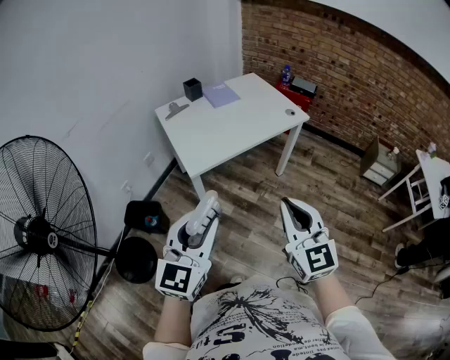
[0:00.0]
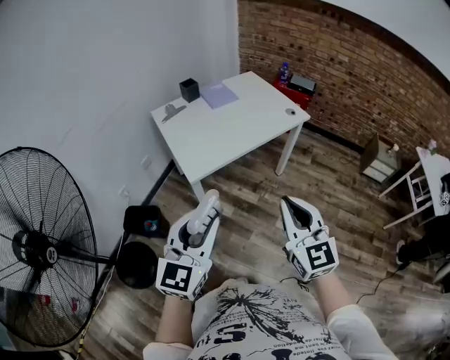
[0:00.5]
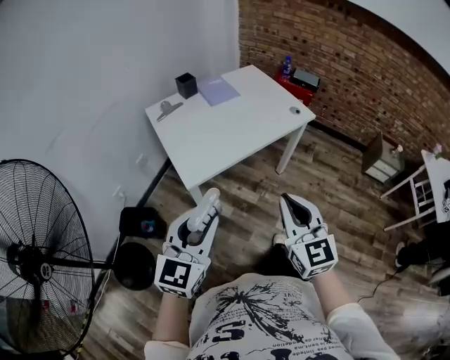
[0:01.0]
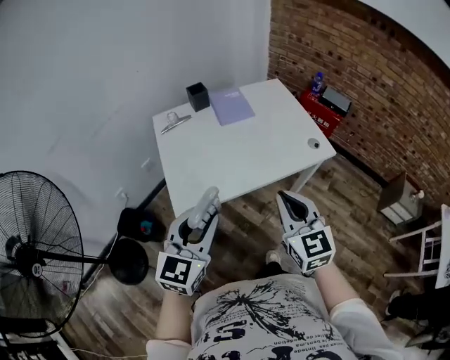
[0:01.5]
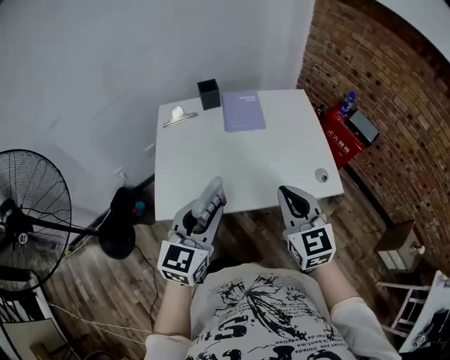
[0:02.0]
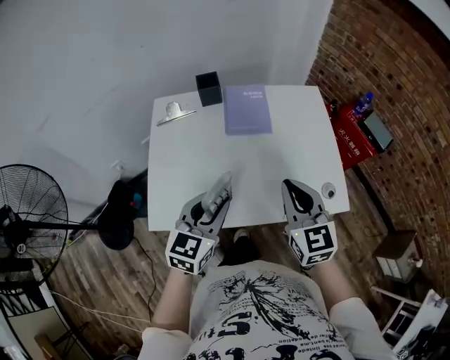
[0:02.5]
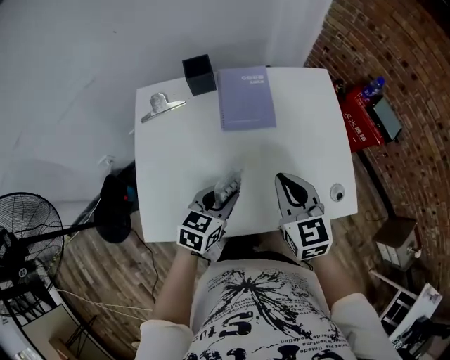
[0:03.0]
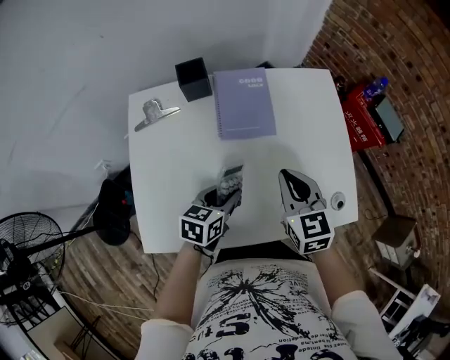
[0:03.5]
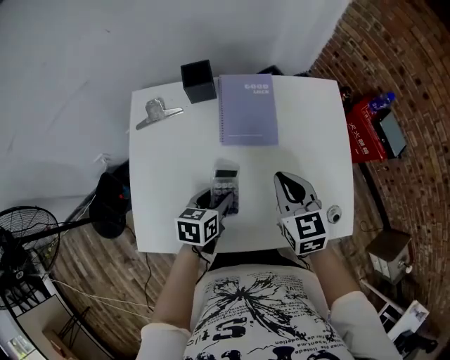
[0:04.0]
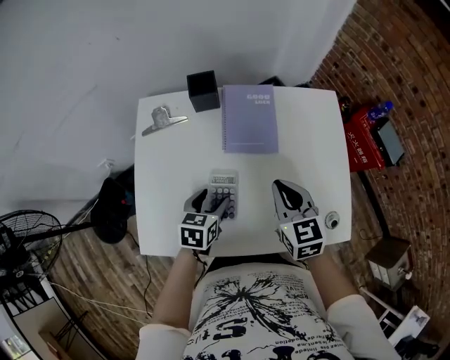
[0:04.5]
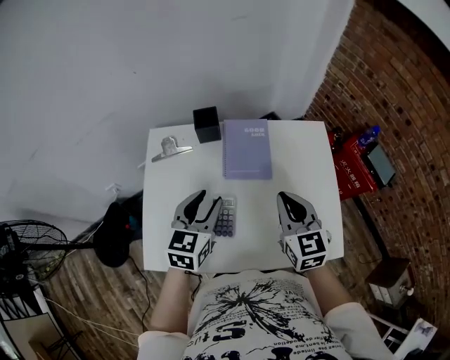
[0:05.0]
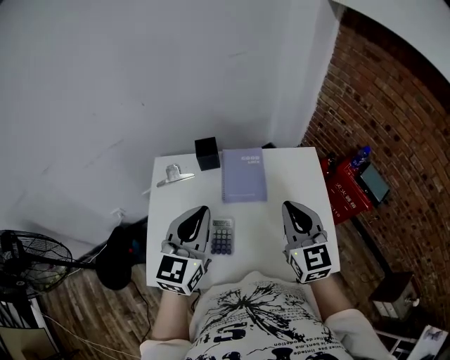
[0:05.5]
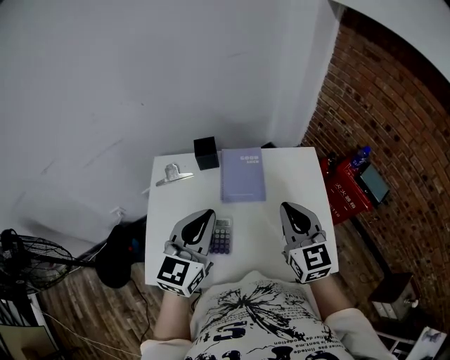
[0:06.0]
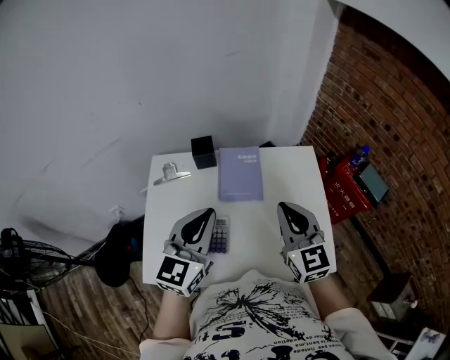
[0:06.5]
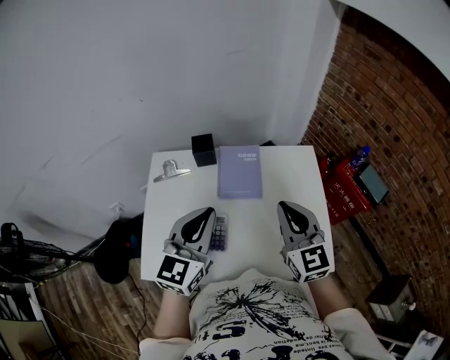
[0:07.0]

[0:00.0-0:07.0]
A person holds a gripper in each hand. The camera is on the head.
0:00.0 to 0:02.0: The pair of grippers is taken forward, some 50 cm. The left gripper changes its angle by about 20 degrees. The right gripper changes its angle by some 30 degrees.
0:02.0 to 0:03.5: The grippers both shift forward and downward by some 35 cm. The left gripper swivels some 40 degrees.
0:03.5 to 0:05.0: The left gripper is displaced upward by some 20 cm, and swivels about 30 degrees; the right gripper moves upward, about 10 cm.
0:05.0 to 0:07.0: The right gripper goes approximately 10 cm upward. Meanwhile the left gripper is displaced upward and backward by some 15 cm, and closes up.

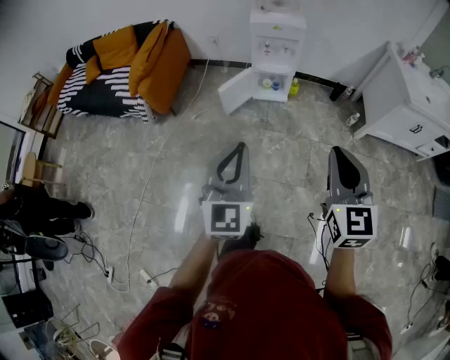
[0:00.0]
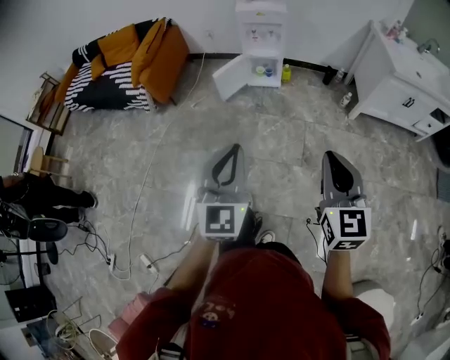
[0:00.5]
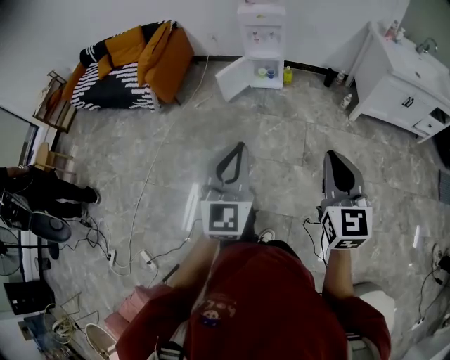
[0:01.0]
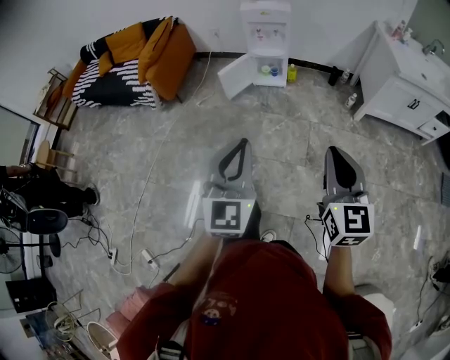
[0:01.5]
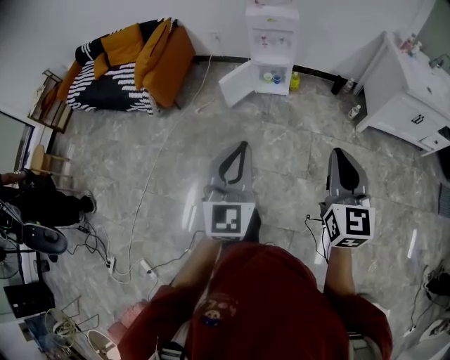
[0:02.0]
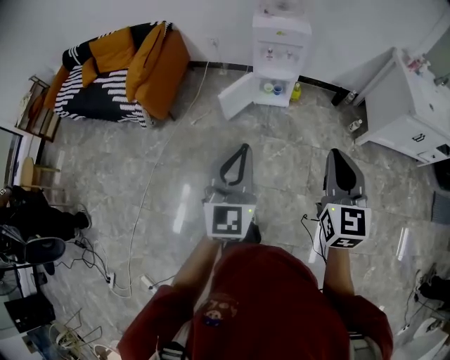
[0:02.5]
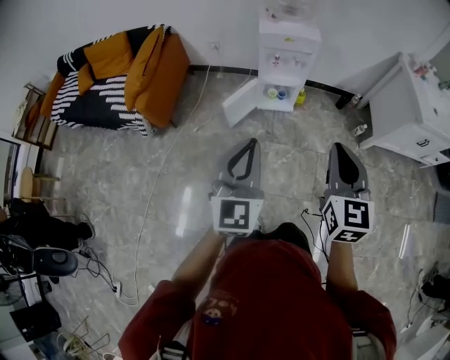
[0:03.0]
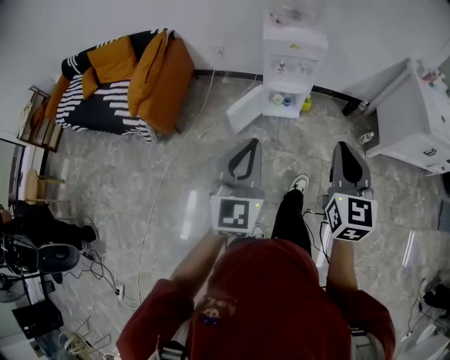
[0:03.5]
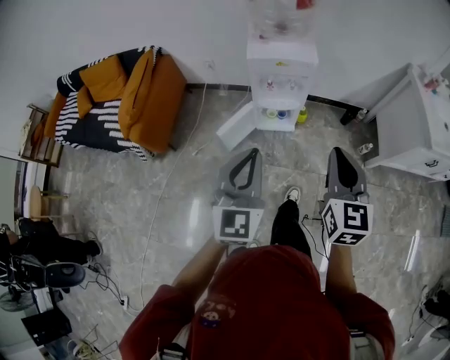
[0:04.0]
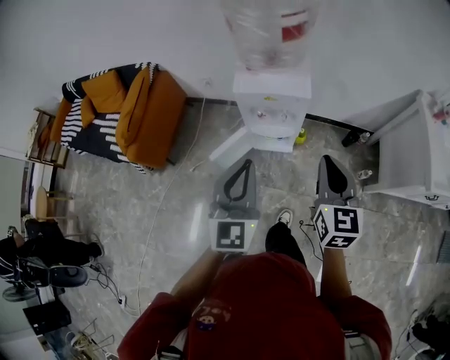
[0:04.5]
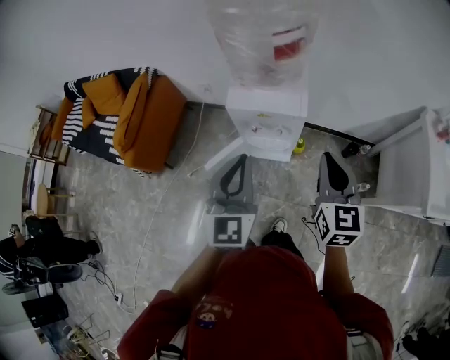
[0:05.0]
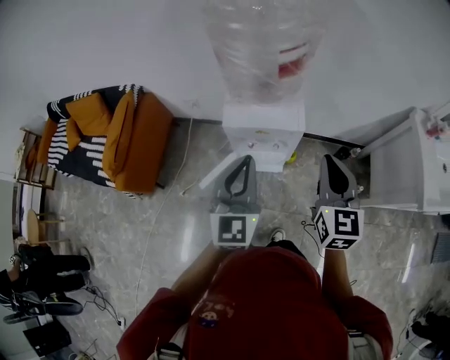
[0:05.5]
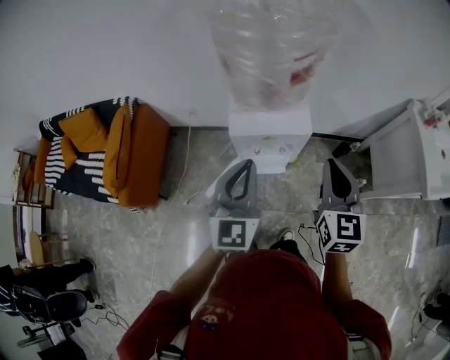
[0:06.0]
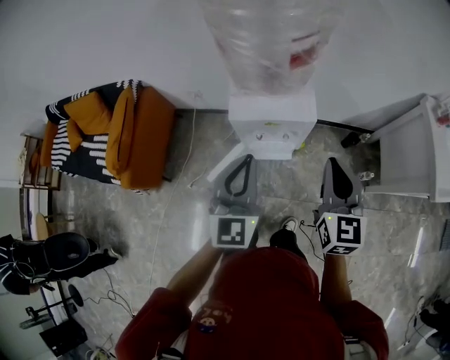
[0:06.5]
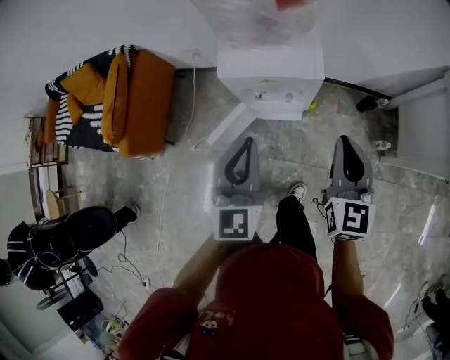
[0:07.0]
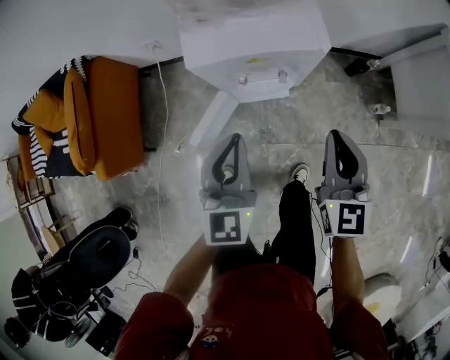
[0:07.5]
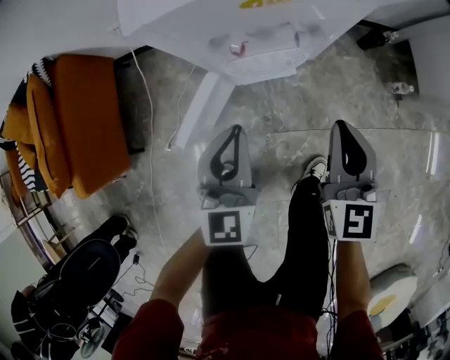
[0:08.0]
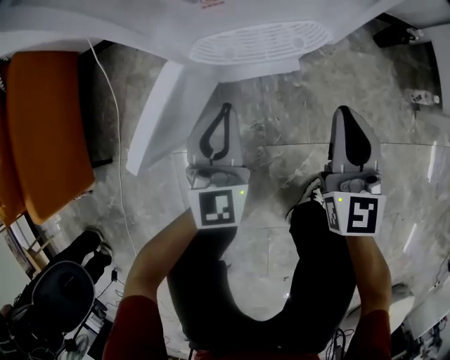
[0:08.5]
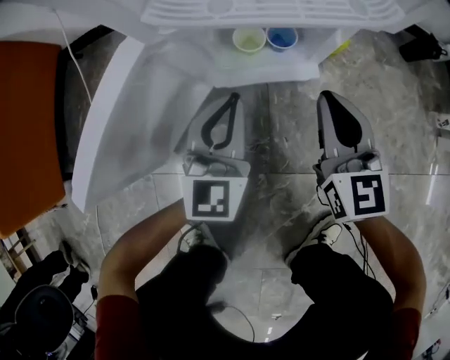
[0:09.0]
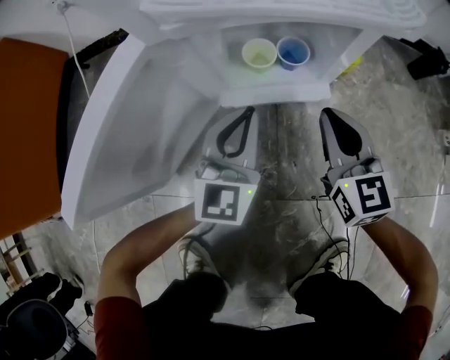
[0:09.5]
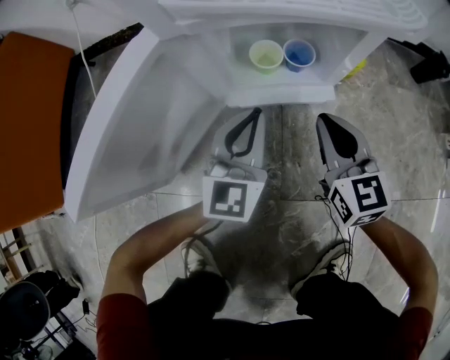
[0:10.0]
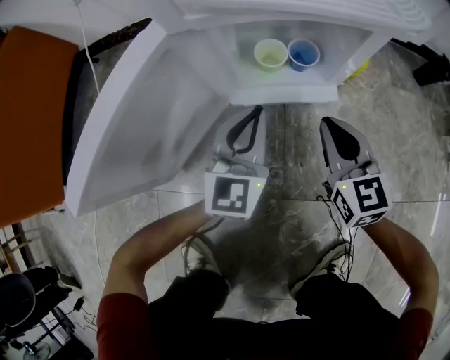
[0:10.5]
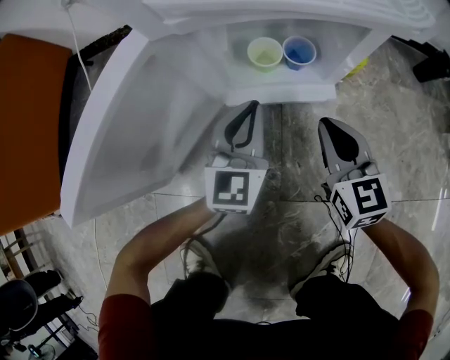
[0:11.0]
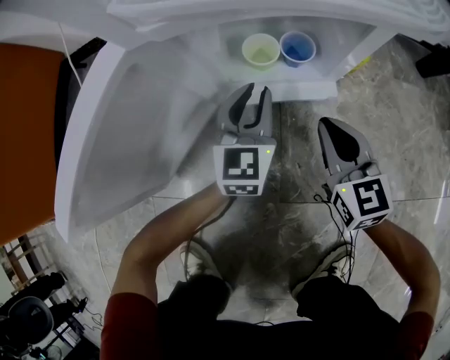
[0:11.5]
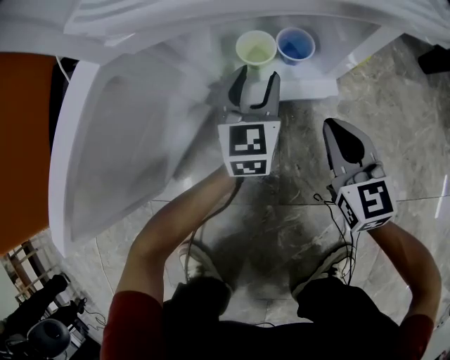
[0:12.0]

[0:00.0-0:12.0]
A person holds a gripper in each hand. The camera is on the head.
0:00.0 to 0:02.0: The left gripper moves backward and to the right, roughly 10 cm; the right gripper shifts about 5 cm to the right, and travels backward and back again, about 25 cm each way.
0:02.0 to 0:04.0: Both grippers are carried forward, roughly 40 cm.
0:04.0 to 0:06.0: The grippers both shift forward by approximately 30 cm.
0:06.0 to 0:08.0: Both grippers move downward, roughly 40 cm.
0:08.0 to 0:10.0: The grippers both shift downward by some 50 cm.
0:10.0 to 0:12.0: The left gripper travels forward and downward by some 15 cm, and opens up. Meanwhile the right gripper heads downward, covering approximately 5 cm.

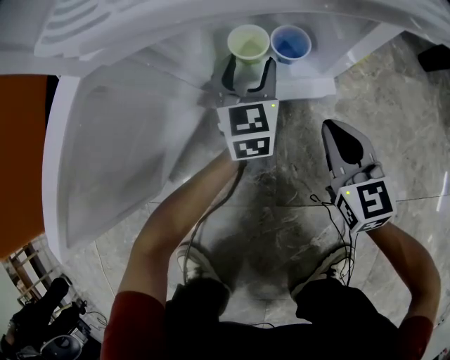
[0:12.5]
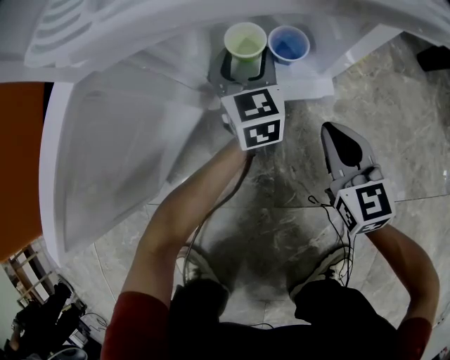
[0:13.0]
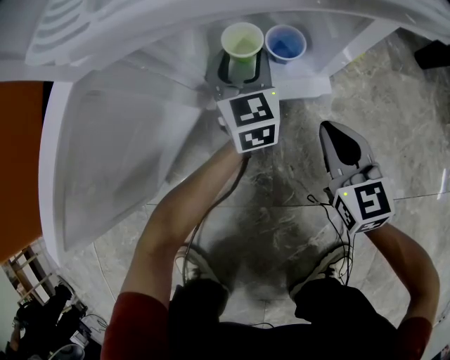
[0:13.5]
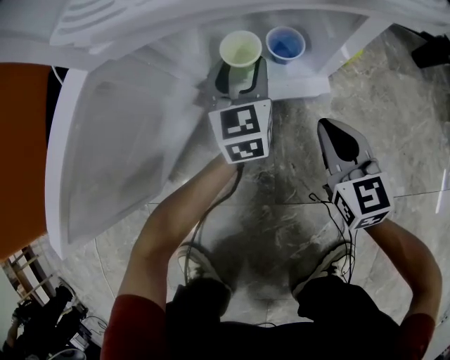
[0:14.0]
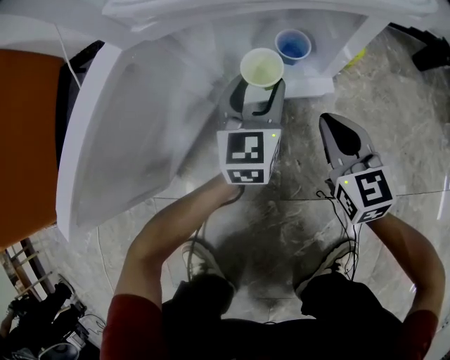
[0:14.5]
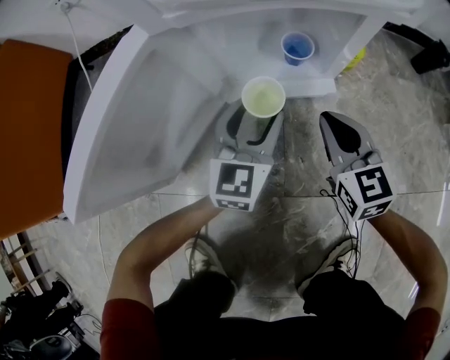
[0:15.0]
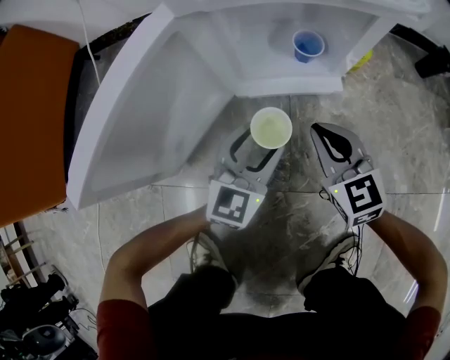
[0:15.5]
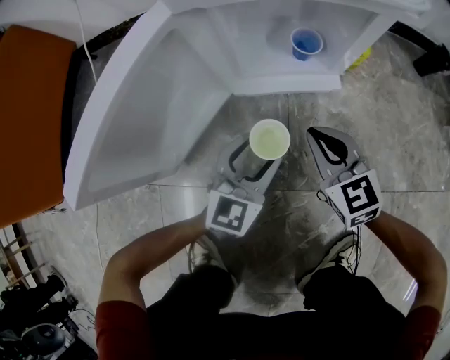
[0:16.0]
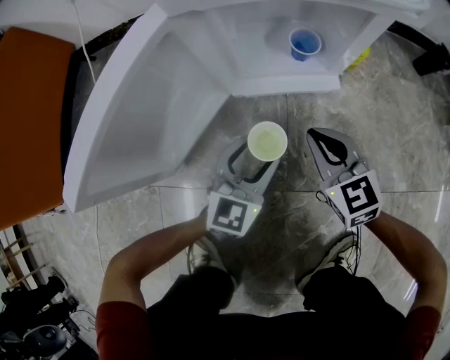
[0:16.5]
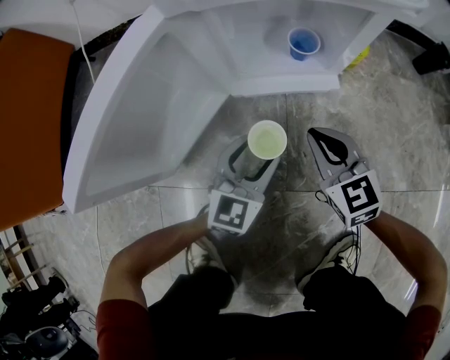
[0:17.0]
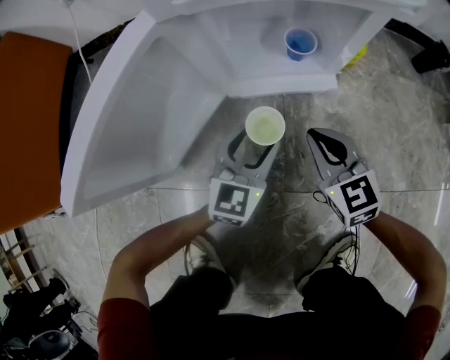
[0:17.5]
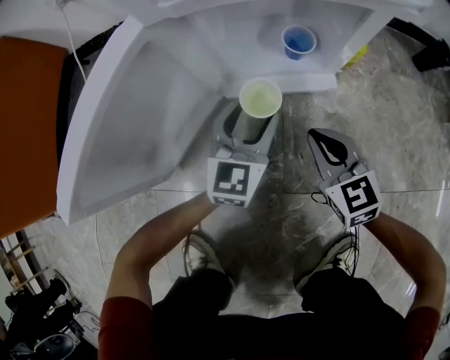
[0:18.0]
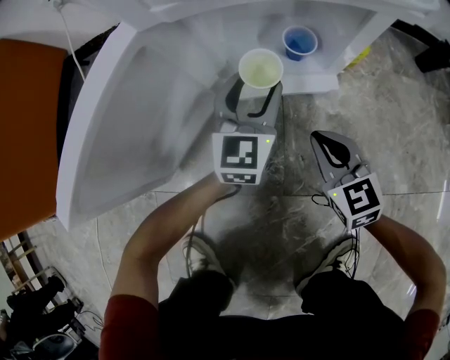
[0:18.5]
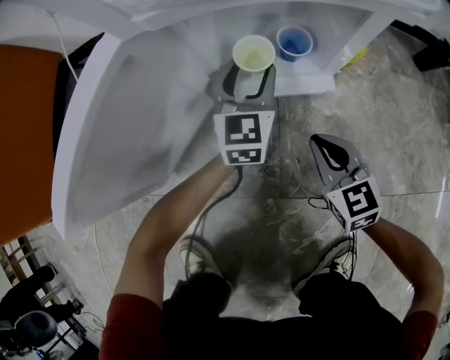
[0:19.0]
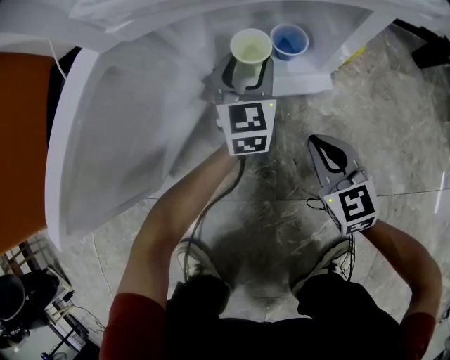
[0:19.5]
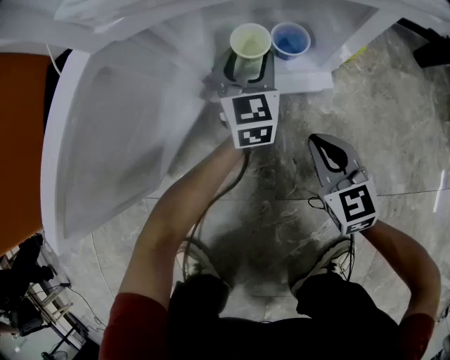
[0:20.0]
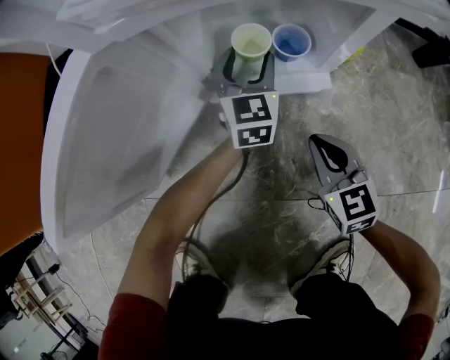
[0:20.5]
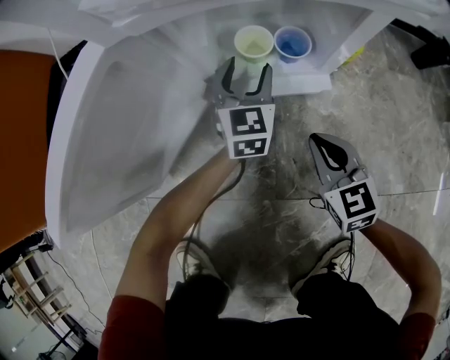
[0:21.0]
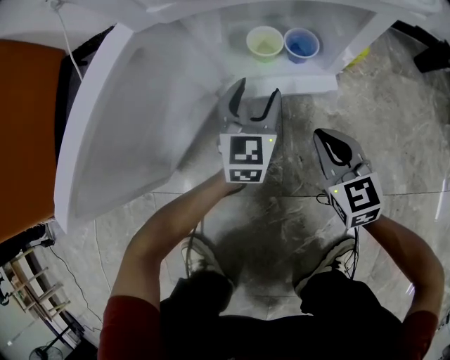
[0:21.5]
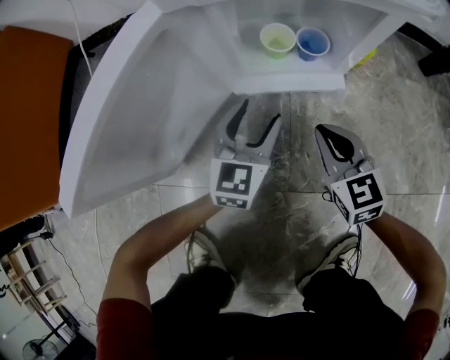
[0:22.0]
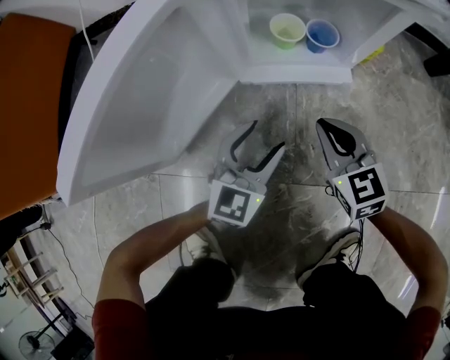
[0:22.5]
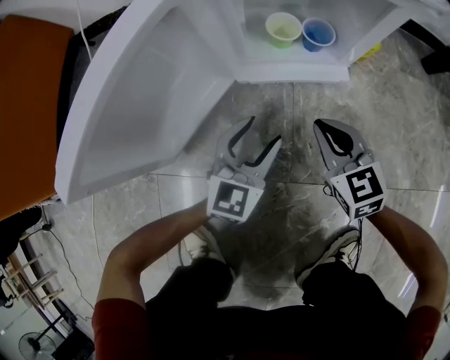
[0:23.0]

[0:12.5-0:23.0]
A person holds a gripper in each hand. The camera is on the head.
0:12.5 to 0:14.5: The left gripper heads backward, covering approximately 5 cm.
0:14.5 to 0:16.5: The left gripper moves backward, some 15 cm. The right gripper travels to the left and backward by about 10 cm.
0:16.5 to 0:19.0: The left gripper shifts some 20 cm forward, while the right gripper shifts by about 5 cm.
0:19.0 to 0:21.0: There are only small adjustments of the grippers.
0:21.0 to 0:23.0: The right gripper ends up about 5 cm from where it was. The left gripper goes about 20 cm backward.
